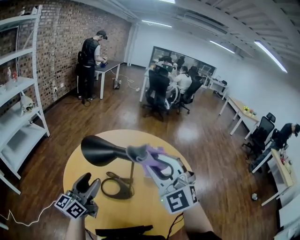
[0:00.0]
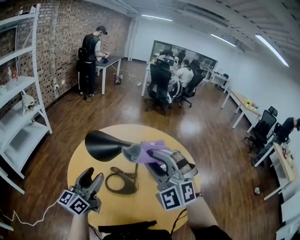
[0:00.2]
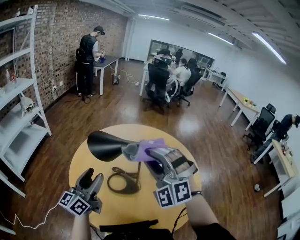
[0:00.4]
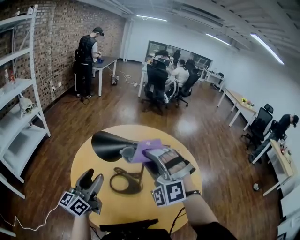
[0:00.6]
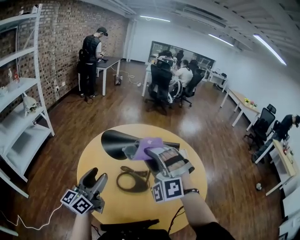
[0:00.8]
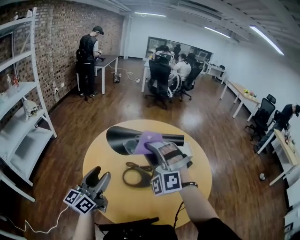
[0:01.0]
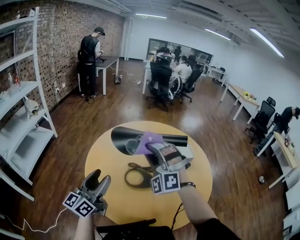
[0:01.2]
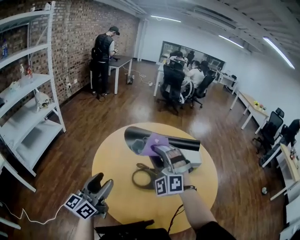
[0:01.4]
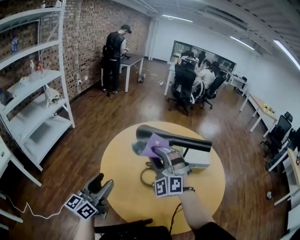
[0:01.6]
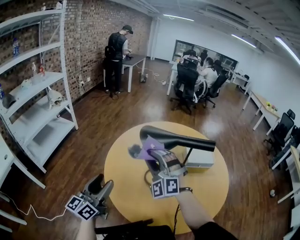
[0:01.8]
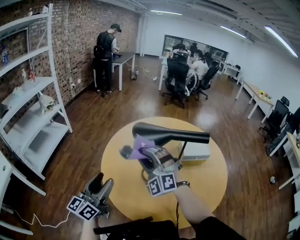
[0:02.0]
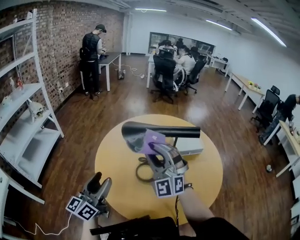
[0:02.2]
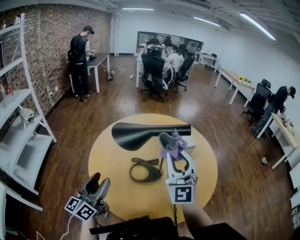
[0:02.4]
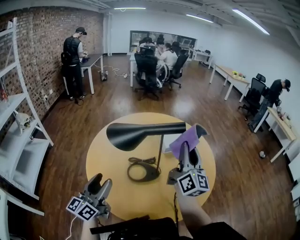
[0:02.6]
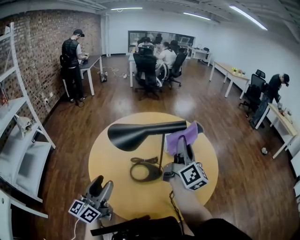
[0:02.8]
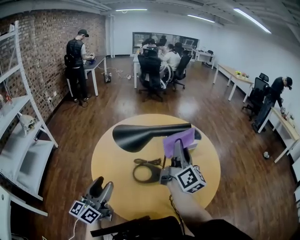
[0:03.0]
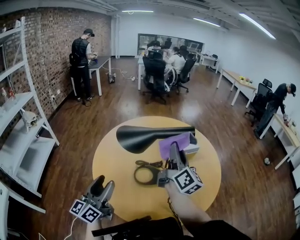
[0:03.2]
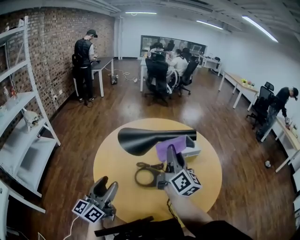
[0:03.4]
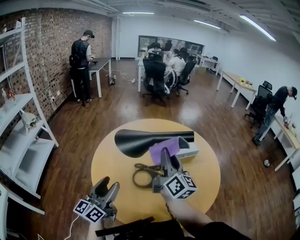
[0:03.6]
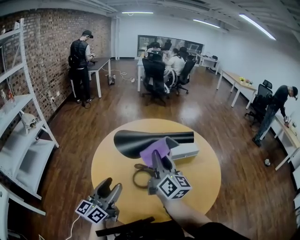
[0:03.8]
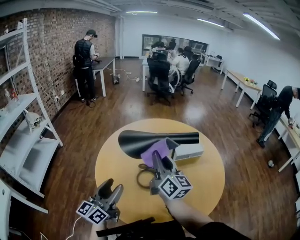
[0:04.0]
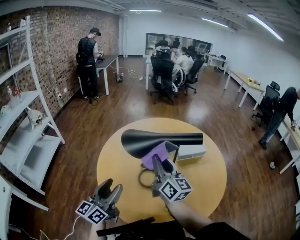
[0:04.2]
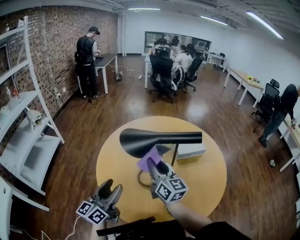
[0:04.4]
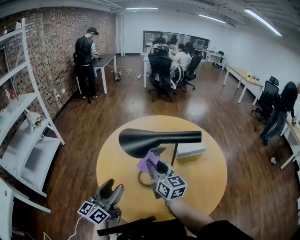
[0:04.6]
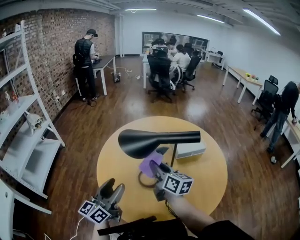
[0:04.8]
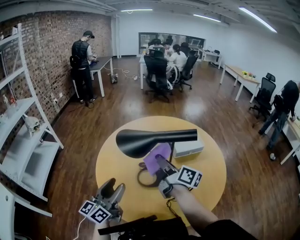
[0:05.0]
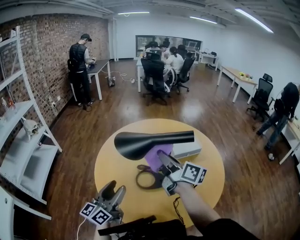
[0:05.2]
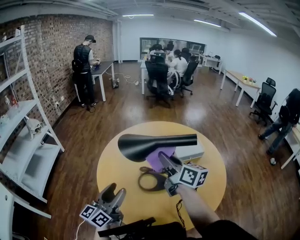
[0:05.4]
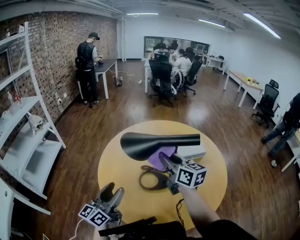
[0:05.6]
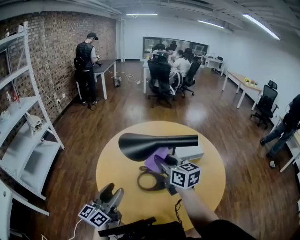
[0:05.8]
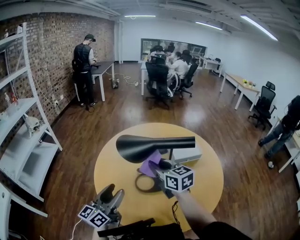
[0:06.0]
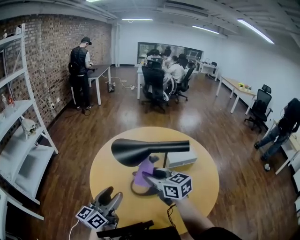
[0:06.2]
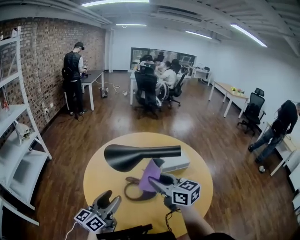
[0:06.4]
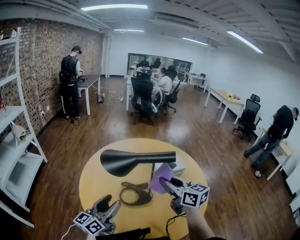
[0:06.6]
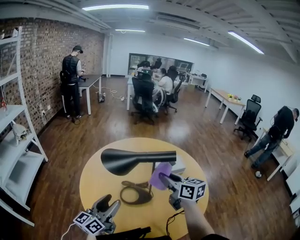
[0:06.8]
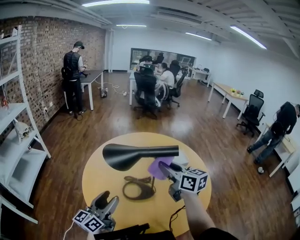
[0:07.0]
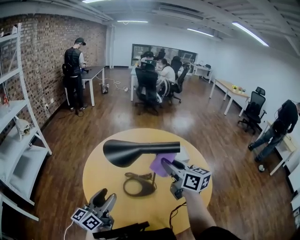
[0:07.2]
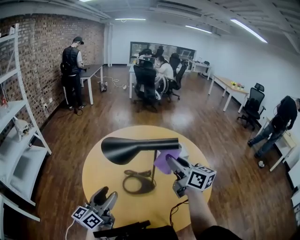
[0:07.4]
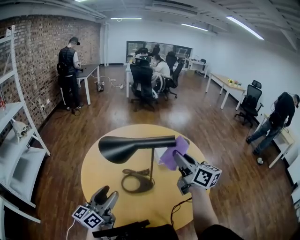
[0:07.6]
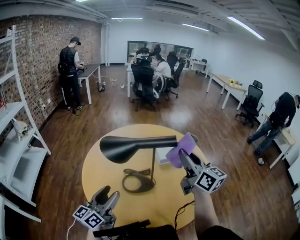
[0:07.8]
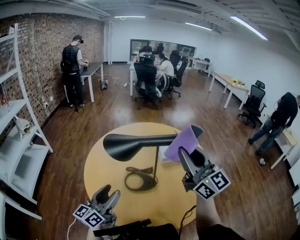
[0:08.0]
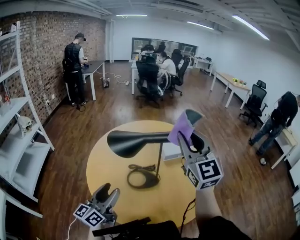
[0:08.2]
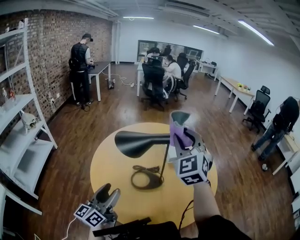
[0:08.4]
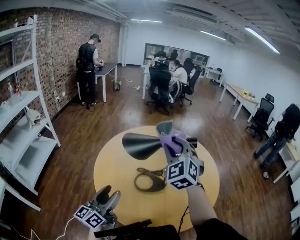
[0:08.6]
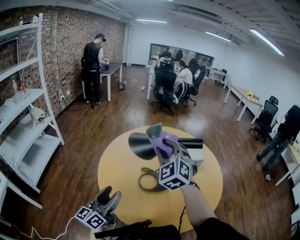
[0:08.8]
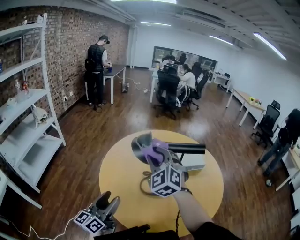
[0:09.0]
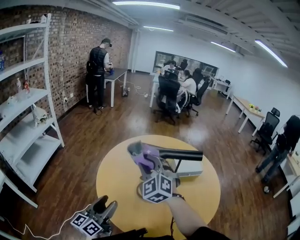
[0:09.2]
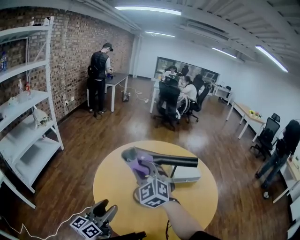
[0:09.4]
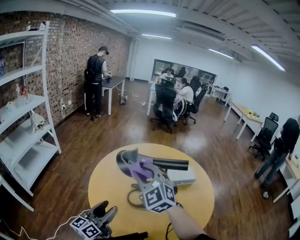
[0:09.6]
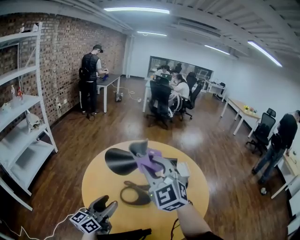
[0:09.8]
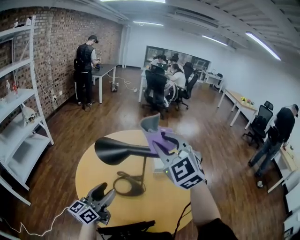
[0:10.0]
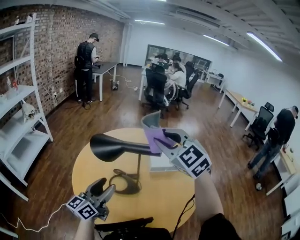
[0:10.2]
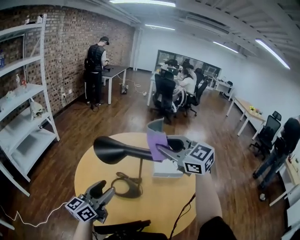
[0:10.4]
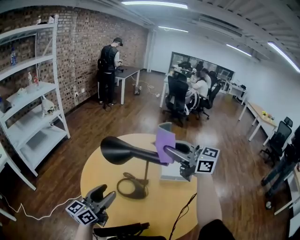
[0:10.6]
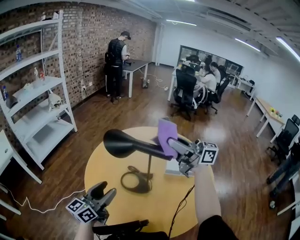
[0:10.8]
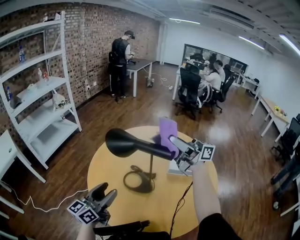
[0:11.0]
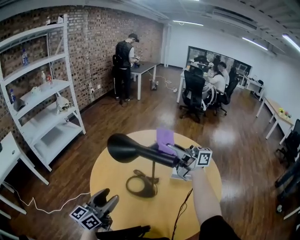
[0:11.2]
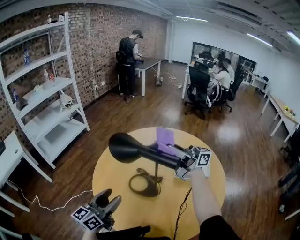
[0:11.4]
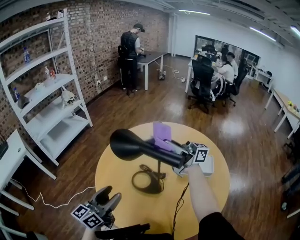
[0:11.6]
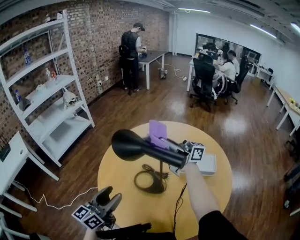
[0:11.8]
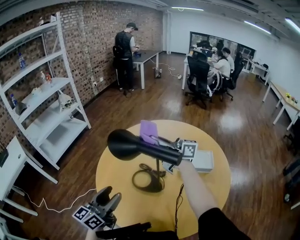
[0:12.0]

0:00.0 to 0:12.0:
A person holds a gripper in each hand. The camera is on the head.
0:00.0 to 0:01.6: The right gripper is displaced to the left and downward by roughly 20 cm. The left gripper travels to the left and backward by roughly 15 cm.
0:01.6 to 0:03.0: The right gripper ends up approximately 20 cm from where it was, and rolls clockwise, seen from behind, by approximately 110 degrees.
0:03.0 to 0:04.4: The right gripper moves to the left and downward, about 15 cm, and swivels some 40 degrees.
0:04.4 to 0:06.0: The right gripper swings up and down, about 10 cm each way, with 2 reversals, and changes its angle by some 20 degrees.
0:06.0 to 0:07.6: The right gripper goes some 20 cm to the right and upward, and rotates about 30 degrees.
0:07.6 to 0:09.0: The left gripper goes about 10 cm to the left and backward, while the right gripper goes roughly 25 cm to the left, and rolls counterclockwise, seen from behind, by approximately 70 degrees.
0:09.0 to 0:10.4: The right gripper moves to the right and upward, roughly 20 cm, and rotates about 50 degrees; the left gripper travels to the right by about 15 cm.
0:10.4 to 0:12.0: The left gripper moves approximately 5 cm, while the right gripper changes place by roughly 15 cm, and tips its fingers upward by roughly 40 degrees.

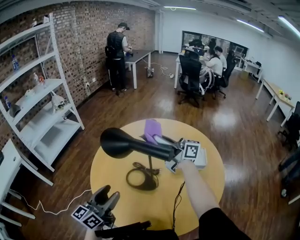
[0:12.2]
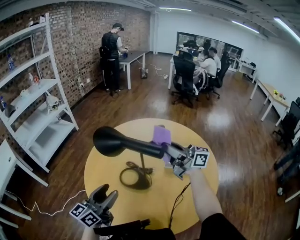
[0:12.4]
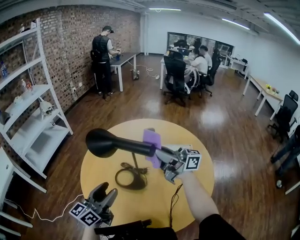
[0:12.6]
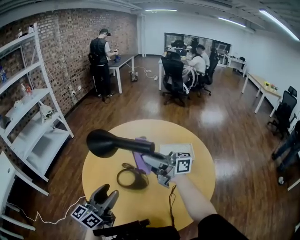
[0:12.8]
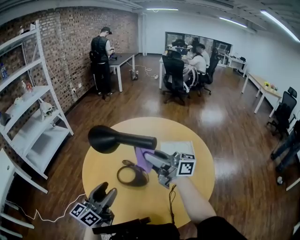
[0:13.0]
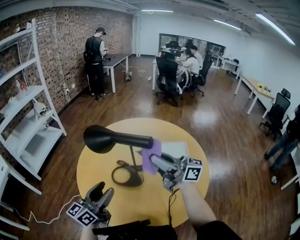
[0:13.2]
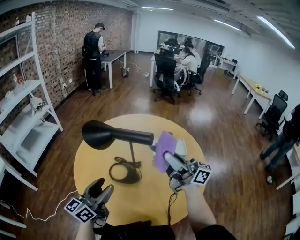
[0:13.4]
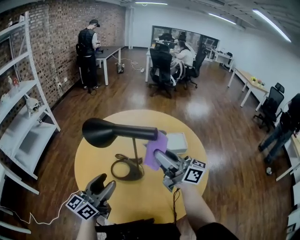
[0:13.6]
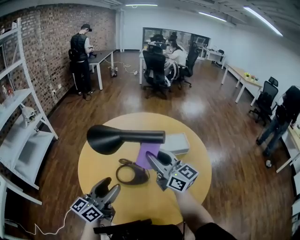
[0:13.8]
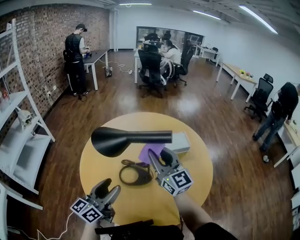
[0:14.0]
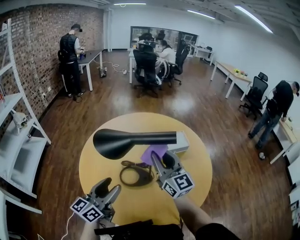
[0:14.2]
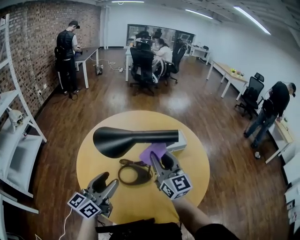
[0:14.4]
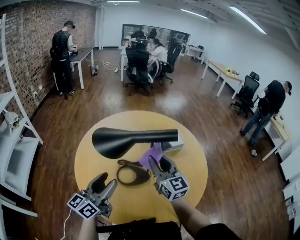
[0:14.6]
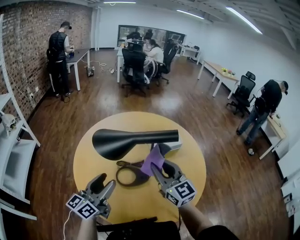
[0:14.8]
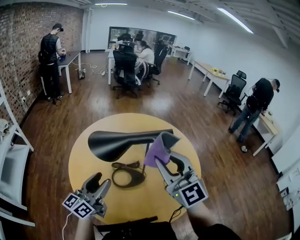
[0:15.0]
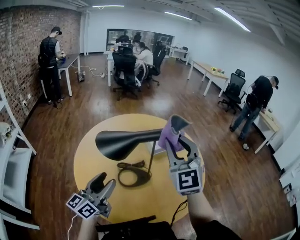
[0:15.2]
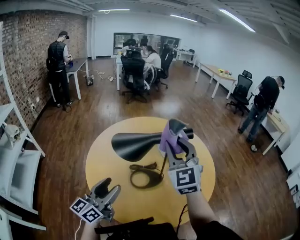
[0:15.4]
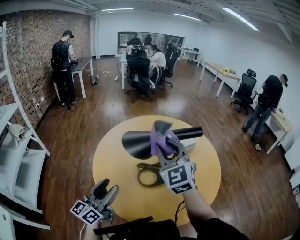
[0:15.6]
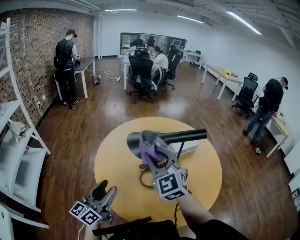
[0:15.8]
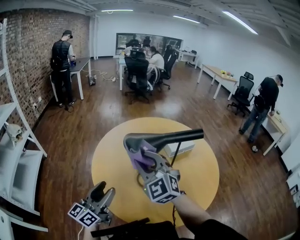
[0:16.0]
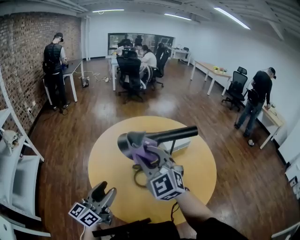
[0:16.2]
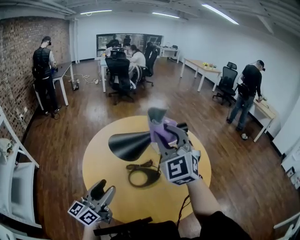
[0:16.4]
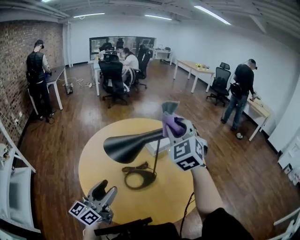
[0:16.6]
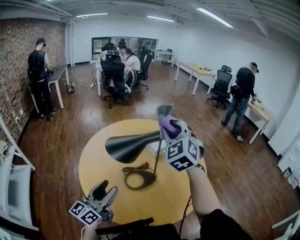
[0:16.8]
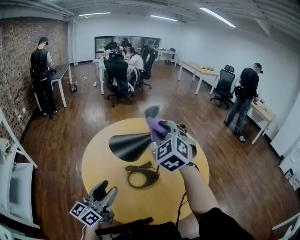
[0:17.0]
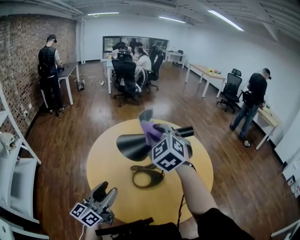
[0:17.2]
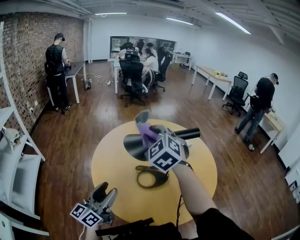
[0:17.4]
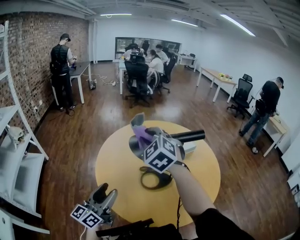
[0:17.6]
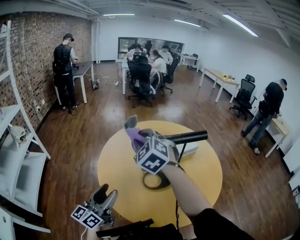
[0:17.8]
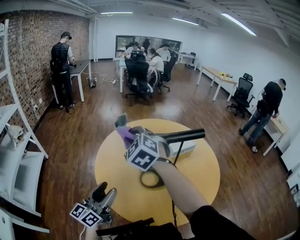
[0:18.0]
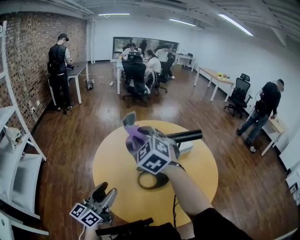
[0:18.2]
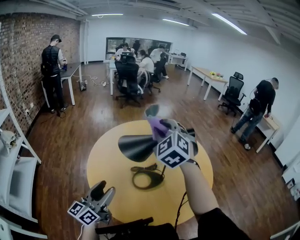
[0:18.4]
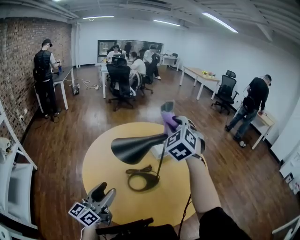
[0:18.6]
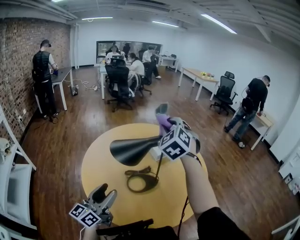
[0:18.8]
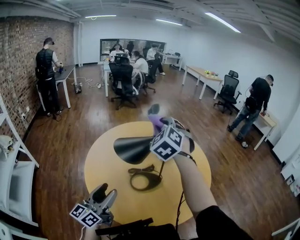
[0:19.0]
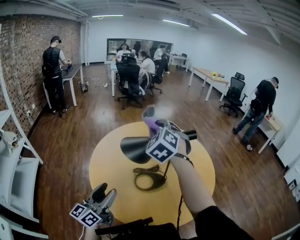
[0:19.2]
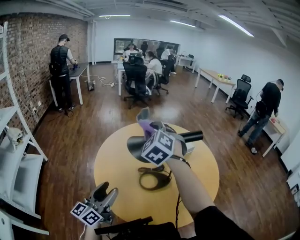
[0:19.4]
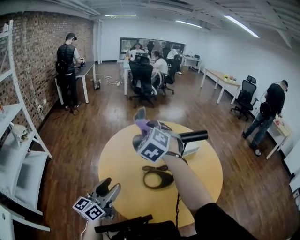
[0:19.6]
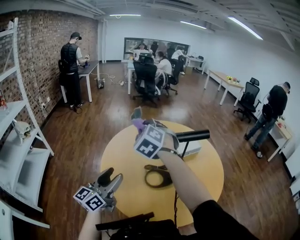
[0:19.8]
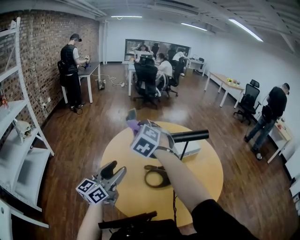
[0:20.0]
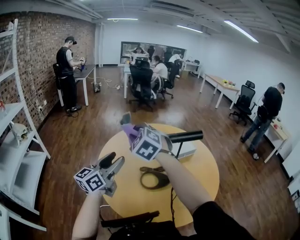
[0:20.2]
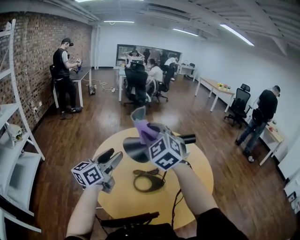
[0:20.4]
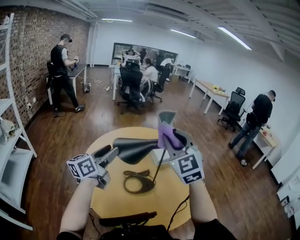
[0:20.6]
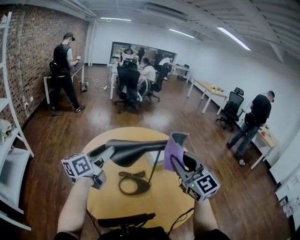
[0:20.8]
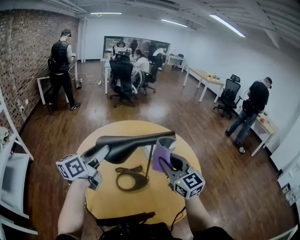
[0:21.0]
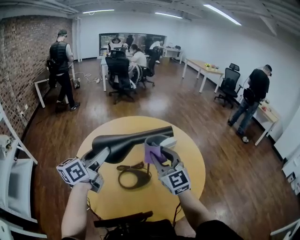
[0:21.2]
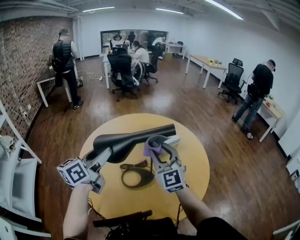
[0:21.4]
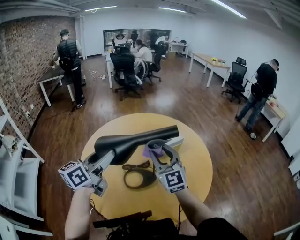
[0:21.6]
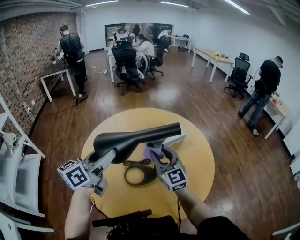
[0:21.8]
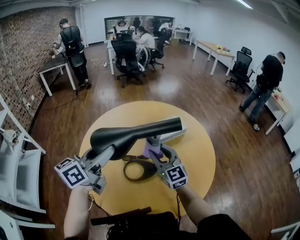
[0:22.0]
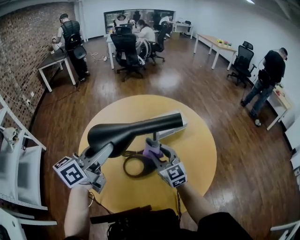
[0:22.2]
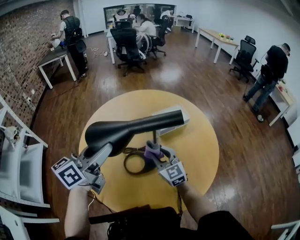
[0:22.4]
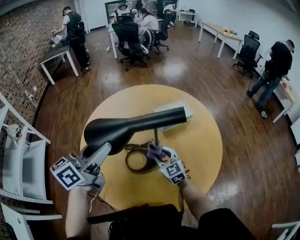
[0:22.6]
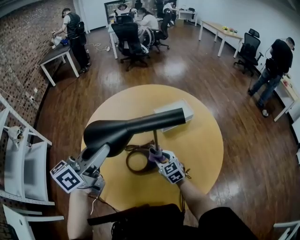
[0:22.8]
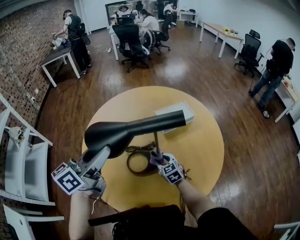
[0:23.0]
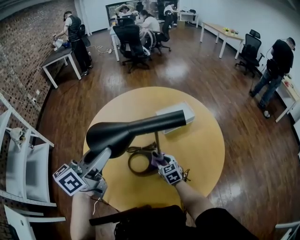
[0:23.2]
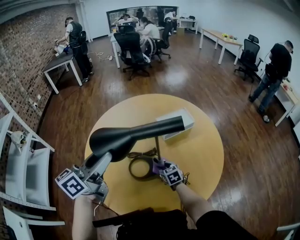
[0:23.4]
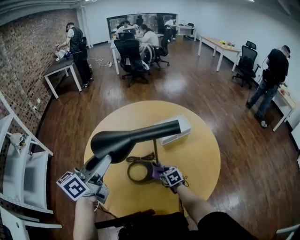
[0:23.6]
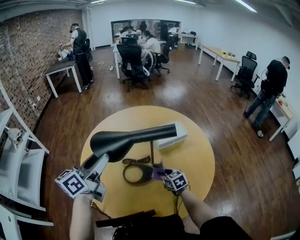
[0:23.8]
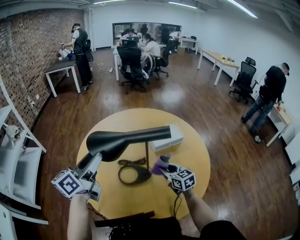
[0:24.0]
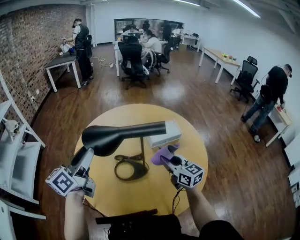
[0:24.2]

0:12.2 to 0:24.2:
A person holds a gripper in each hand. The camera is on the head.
0:12.2 to 0:13.8: The right gripper changes its angle by some 50 degrees.
0:13.8 to 0:15.2: The right gripper moves upward, roughly 10 cm, and rotates roughly 70 degrees. The left gripper shifts by some 10 cm.
0:15.2 to 0:16.6: The right gripper goes to the left and returns, roughly 20 cm each way, and swivels roughly 20 degrees, while the left gripper moves approximately 10 cm to the left and comes back.
0:16.6 to 0:18.2: The right gripper heads to the left, covering approximately 20 cm, and changes its angle by roughly 30 degrees; the left gripper heads to the left, covering roughly 5 cm.
0:18.2 to 0:19.8: The right gripper reaches roughly 20 cm to the right, then returns.
0:19.8 to 0:21.2: The right gripper shifts about 20 cm to the right, and rotates roughly 40 degrees. The left gripper moves forward, to the right and upward, about 15 cm.
0:21.2 to 0:22.6: The right gripper travels downward by some 25 cm, and swivels some 20 degrees.
0:22.6 to 0:24.2: The left gripper moves roughly 5 cm, and changes its angle by approximately 20 degrees; the right gripper travels upward and to the right by roughly 15 cm, and turns by roughly 20 degrees.
